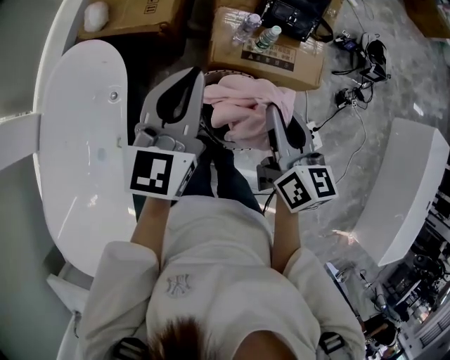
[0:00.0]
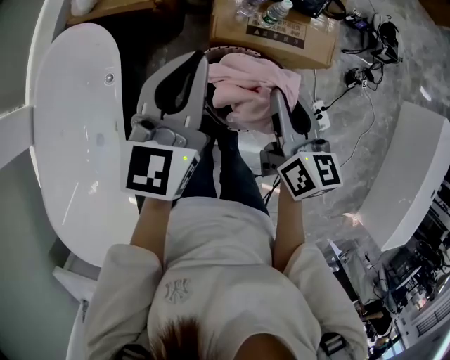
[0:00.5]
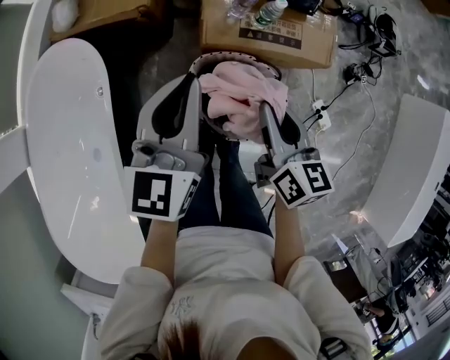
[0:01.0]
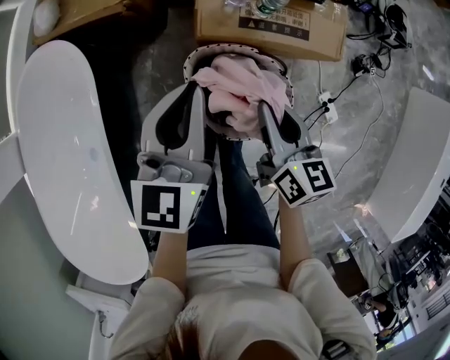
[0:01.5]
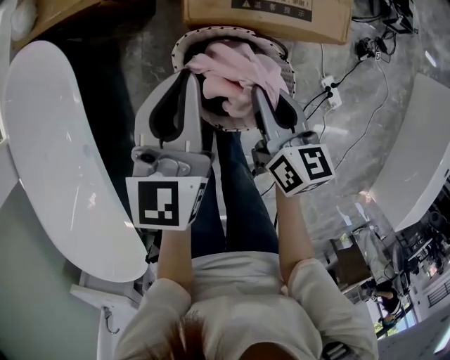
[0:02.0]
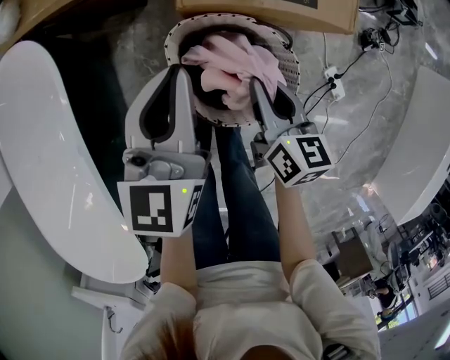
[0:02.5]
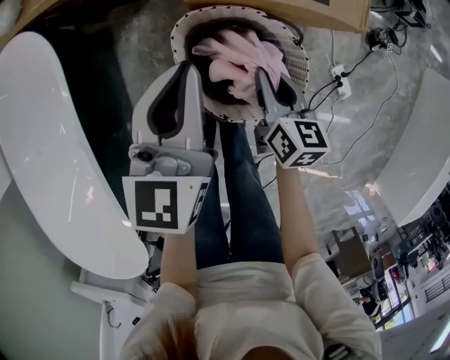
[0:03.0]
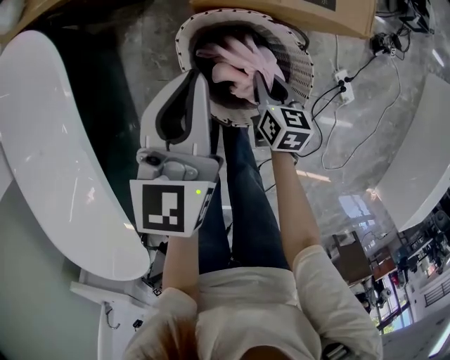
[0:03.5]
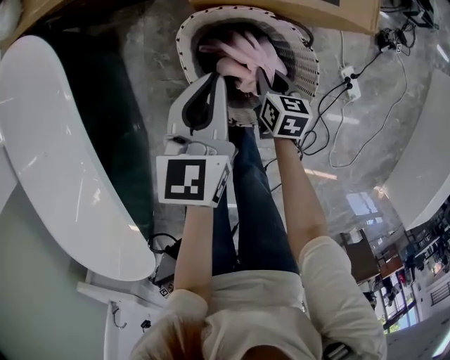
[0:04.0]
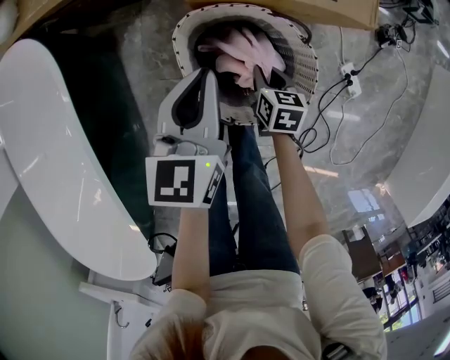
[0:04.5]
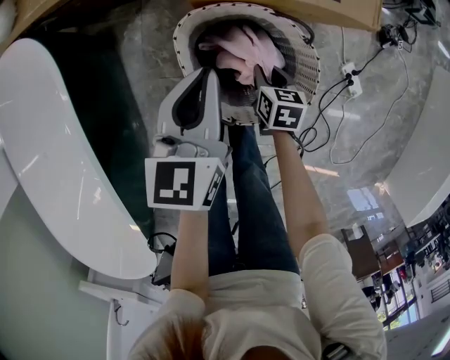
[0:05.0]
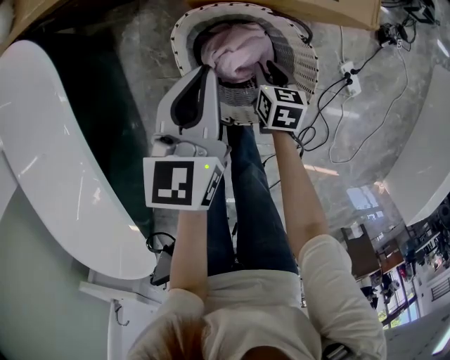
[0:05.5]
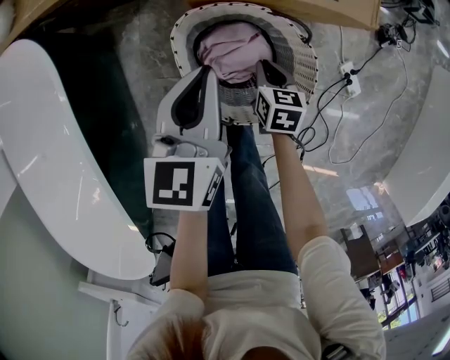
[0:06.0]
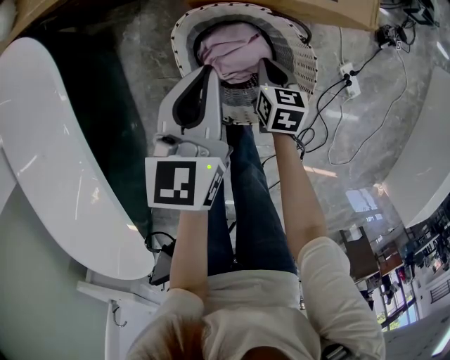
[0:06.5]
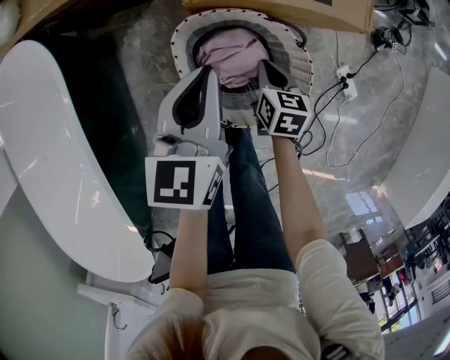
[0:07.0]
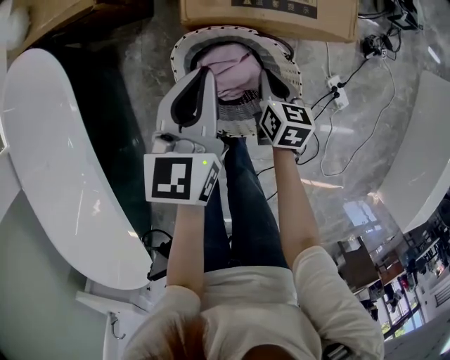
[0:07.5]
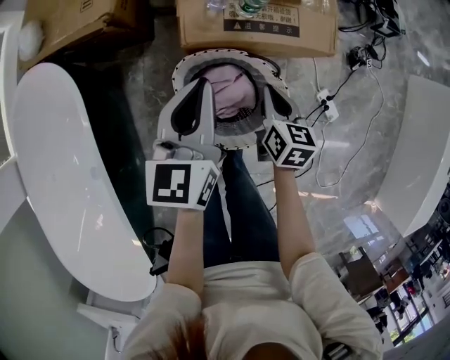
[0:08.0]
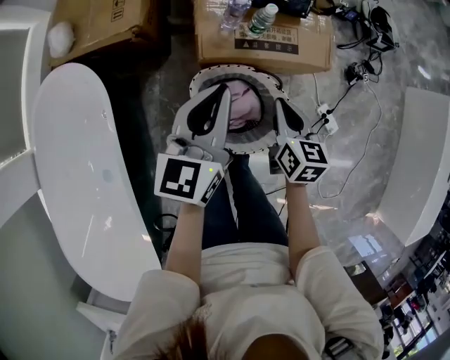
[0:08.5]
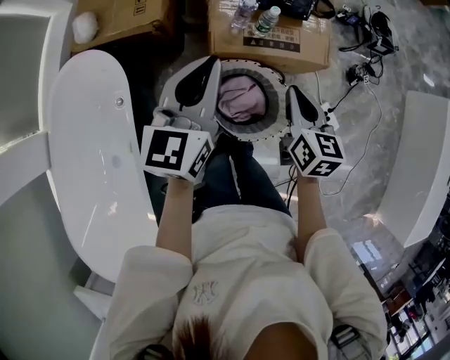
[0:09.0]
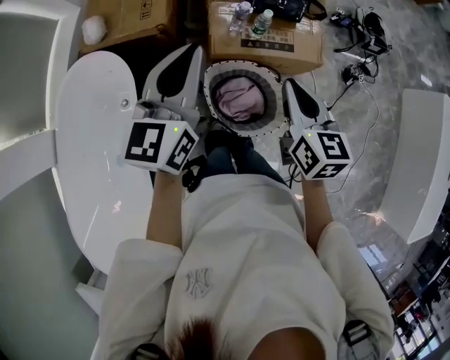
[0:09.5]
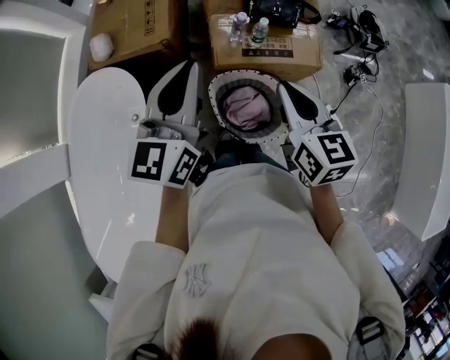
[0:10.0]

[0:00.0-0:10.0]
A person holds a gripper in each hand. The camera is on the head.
0:00.0 to 0:02.0: The two grippers go some 25 cm downward.
0:02.0 to 0:04.0: The left gripper heads downward, covering some 15 cm; the right gripper heads downward, covering approximately 25 cm, and swivels roughly 20 degrees.
0:04.0 to 0:06.0: The grippers stay close to where they were, moving slightly.
0:06.0 to 0:08.0: The left gripper is displaced upward by roughly 10 cm; the right gripper heads upward, covering roughly 15 cm.
0:08.0 to 0:10.0: The grippers both shift upward by some 35 cm. The right gripper changes its angle by some 20 degrees.

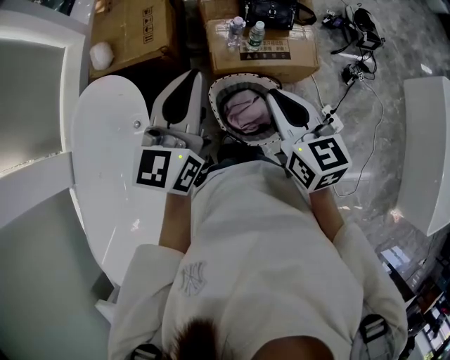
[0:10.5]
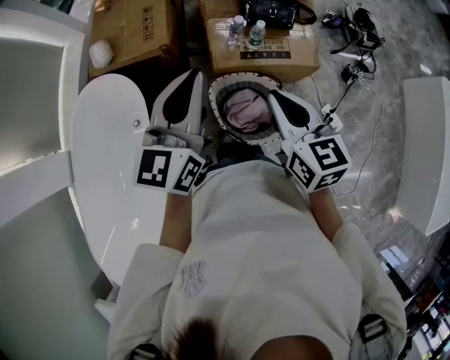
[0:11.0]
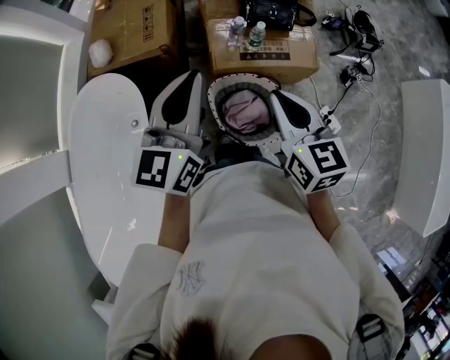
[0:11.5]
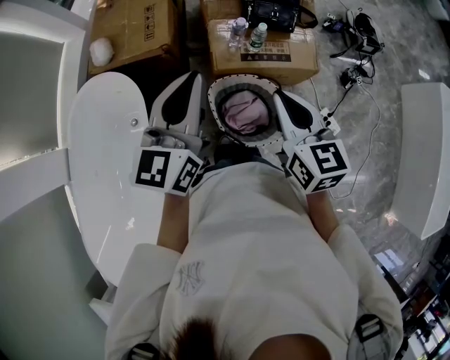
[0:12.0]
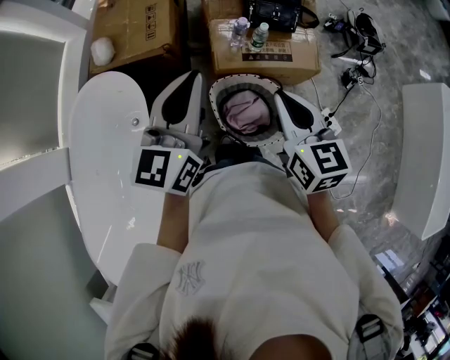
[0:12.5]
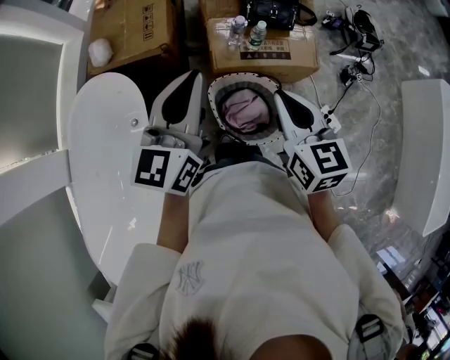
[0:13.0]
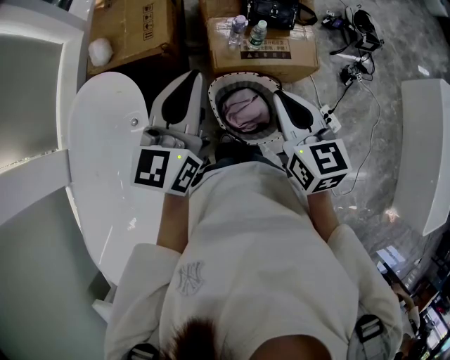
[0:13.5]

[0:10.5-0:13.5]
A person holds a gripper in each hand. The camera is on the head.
0:10.5 to 0:12.0: Neither gripper changes place.
0:12.0 to 0:13.5: Neither gripper changes place.

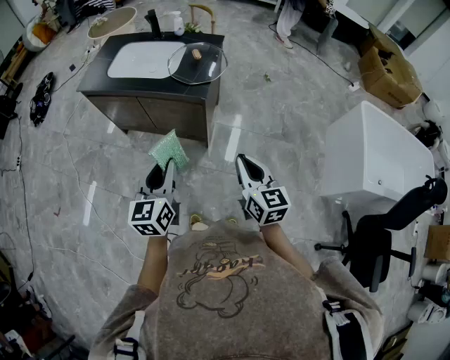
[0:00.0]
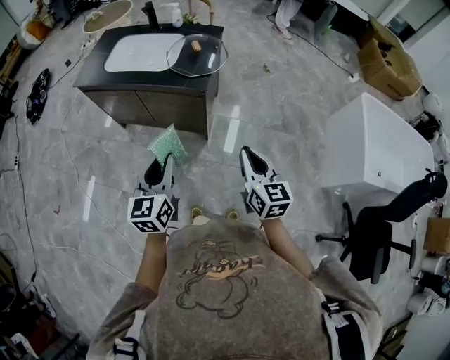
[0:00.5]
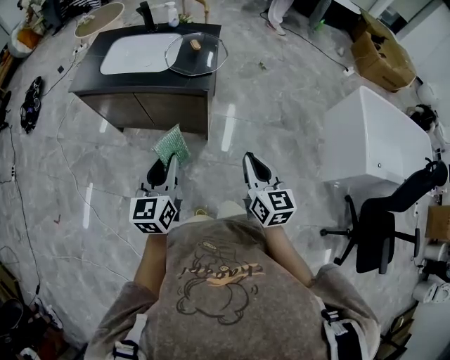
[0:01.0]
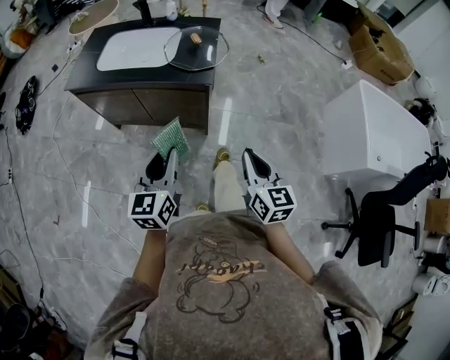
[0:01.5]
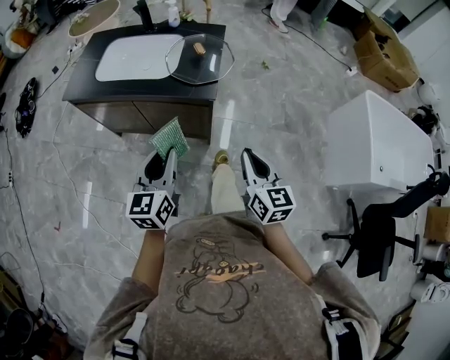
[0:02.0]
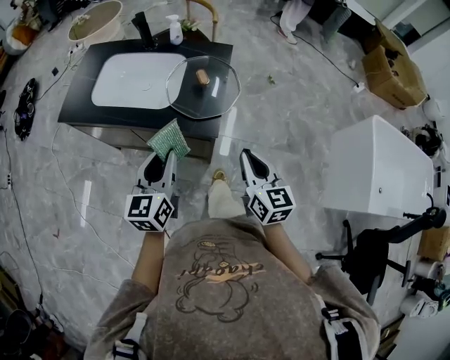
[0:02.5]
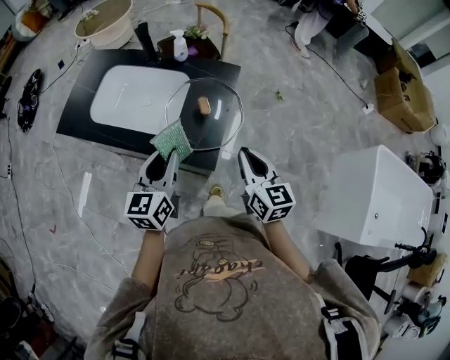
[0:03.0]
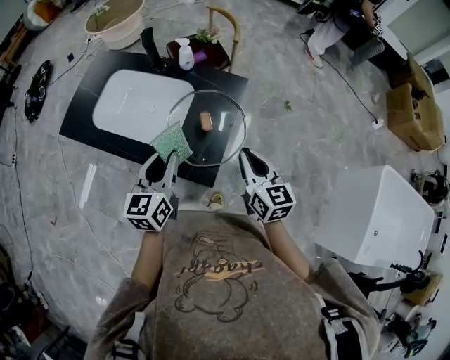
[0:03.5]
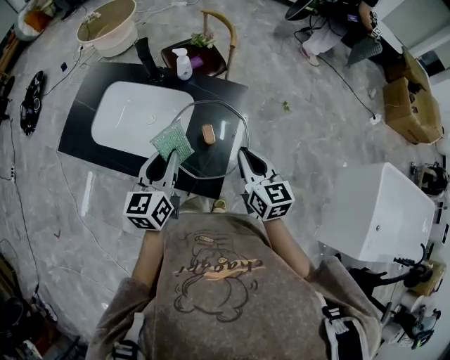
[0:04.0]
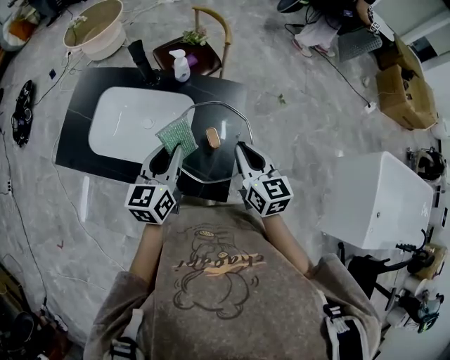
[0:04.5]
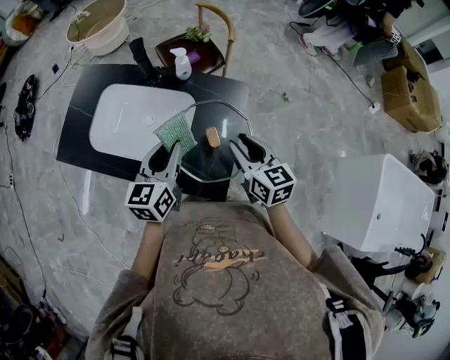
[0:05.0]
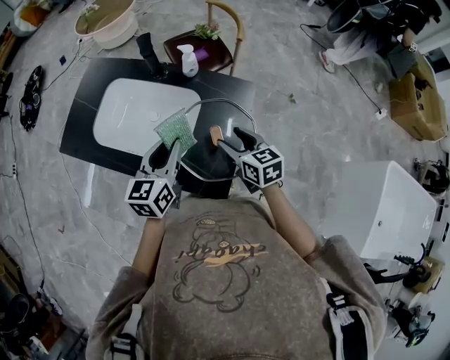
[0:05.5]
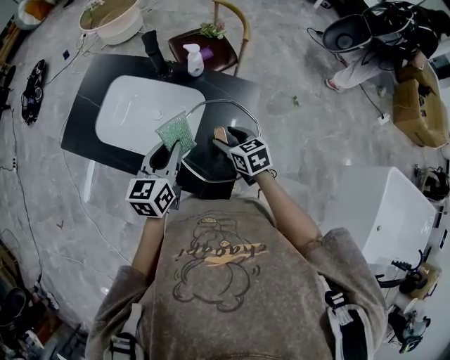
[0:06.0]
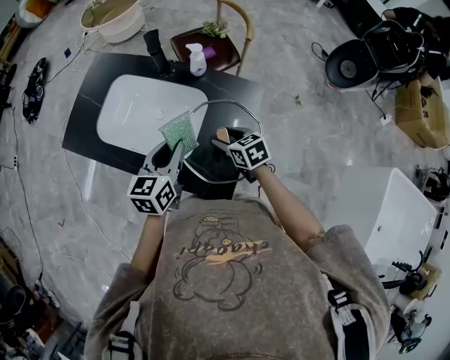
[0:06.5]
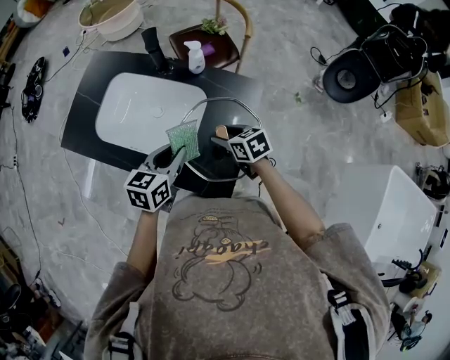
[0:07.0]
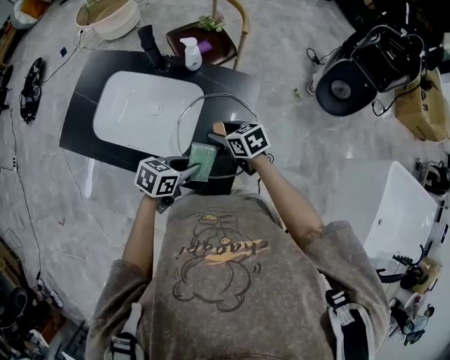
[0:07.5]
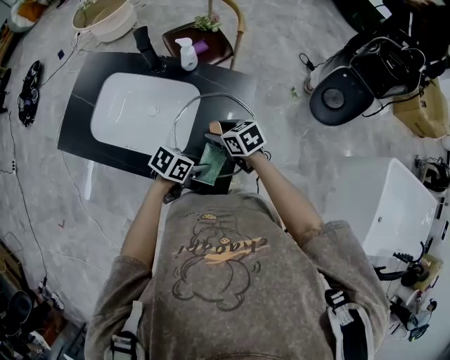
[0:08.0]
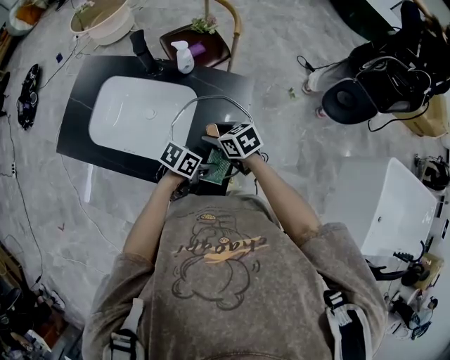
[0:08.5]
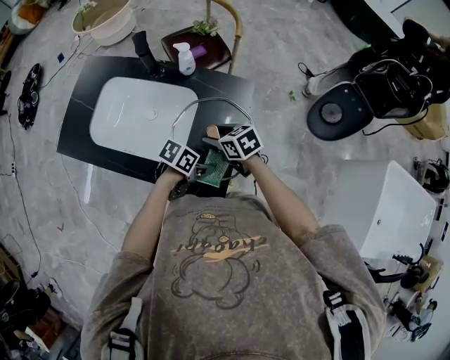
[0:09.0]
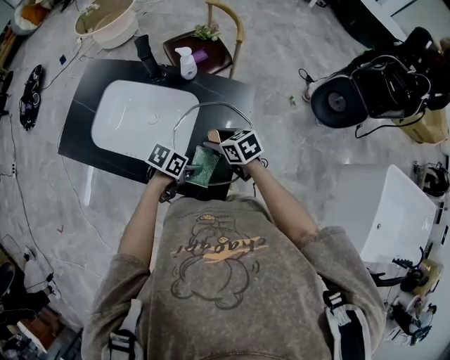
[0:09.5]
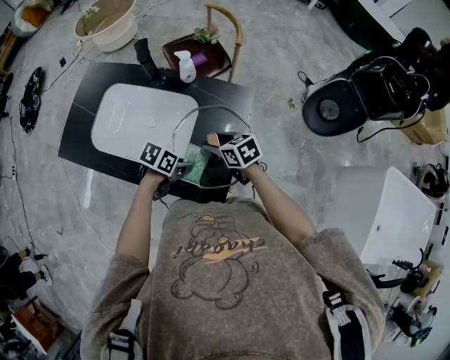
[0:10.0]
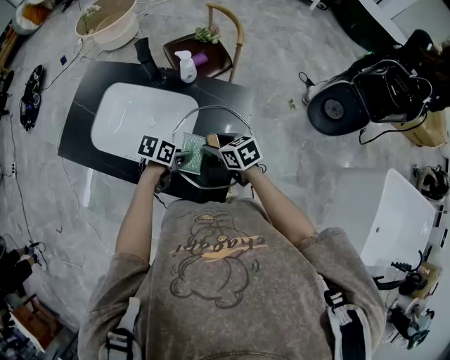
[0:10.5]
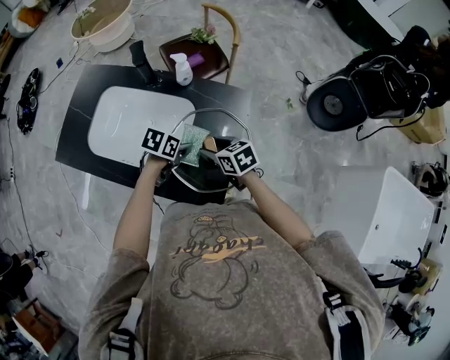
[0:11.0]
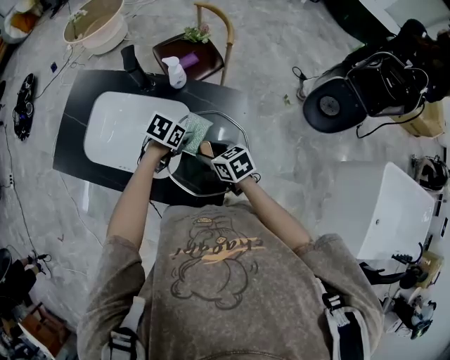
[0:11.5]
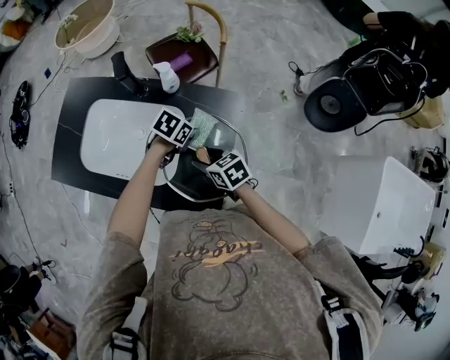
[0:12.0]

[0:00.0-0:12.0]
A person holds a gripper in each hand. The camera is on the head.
0:00.0 to 0:02.0: Both grippers move forward and to the left, roughly 10 cm.
0:02.0 to 0:04.0: Both grippers travel together forward, about 40 cm.
0:04.0 to 0:06.0: The left gripper shifts roughly 5 cm forward. The right gripper heads downward, forward and to the left, covering roughly 20 cm, changes its angle by some 30 degrees, and opens its fingers.
0:06.0 to 0:08.0: The left gripper shifts approximately 15 cm downward, and rotates about 60 degrees.
0:08.0 to 0:10.0: The left gripper moves about 5 cm.
0:10.0 to 0:12.0: The left gripper shifts by roughly 15 cm, and rotates roughly 20 degrees.

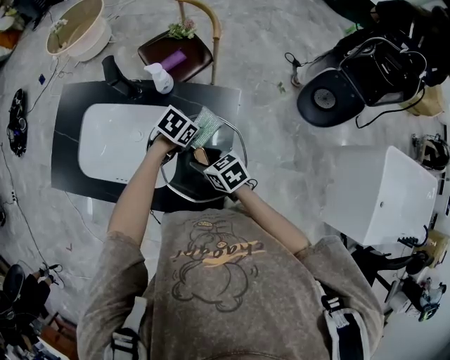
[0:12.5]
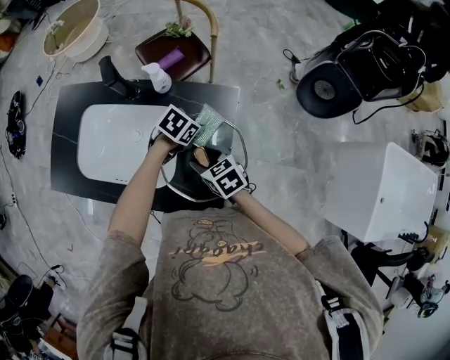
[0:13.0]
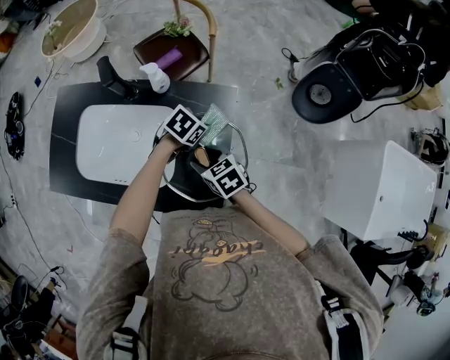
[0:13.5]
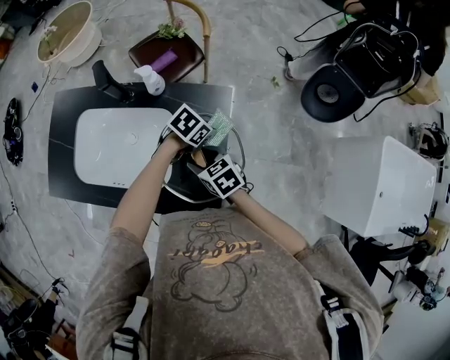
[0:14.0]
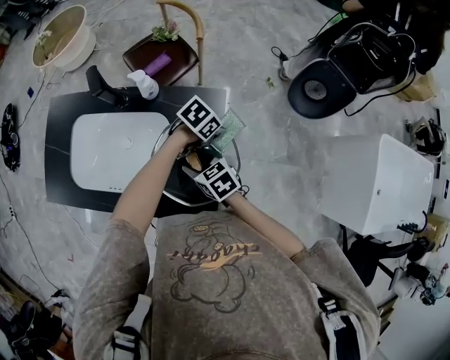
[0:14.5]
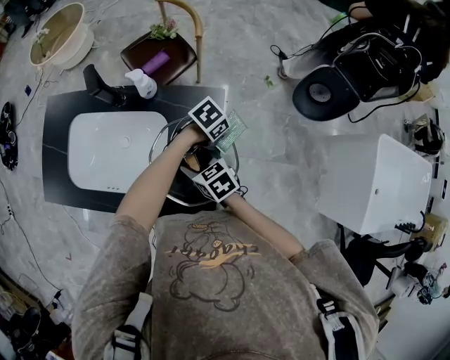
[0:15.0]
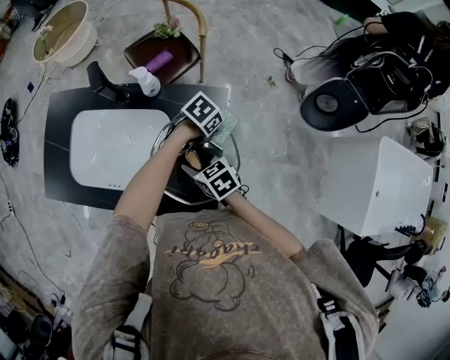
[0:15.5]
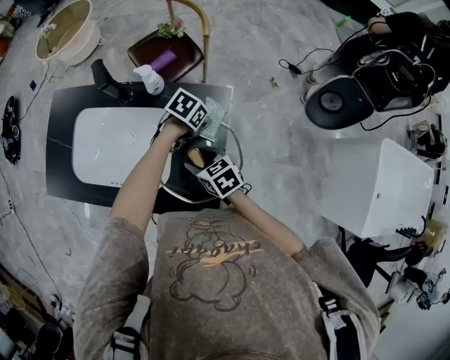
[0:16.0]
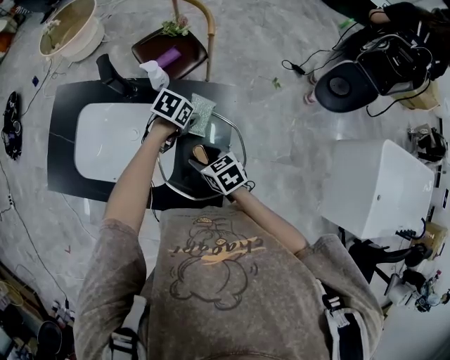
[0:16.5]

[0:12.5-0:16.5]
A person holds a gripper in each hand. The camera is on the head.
0:12.5 to 0:14.5: The left gripper changes place by some 10 cm.
0:14.5 to 0:16.5: The left gripper shifts by approximately 15 cm, and changes its angle by roughly 20 degrees.
